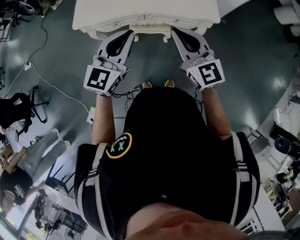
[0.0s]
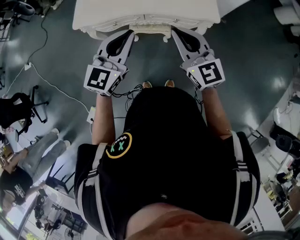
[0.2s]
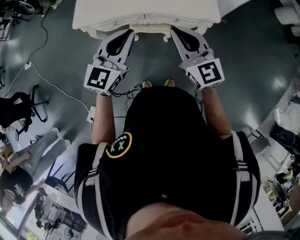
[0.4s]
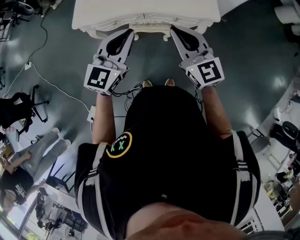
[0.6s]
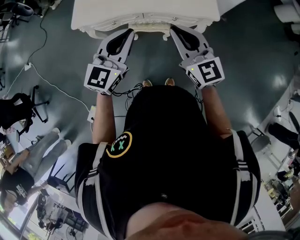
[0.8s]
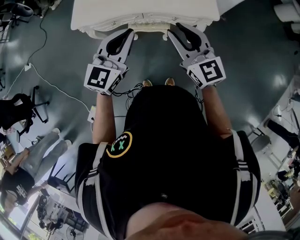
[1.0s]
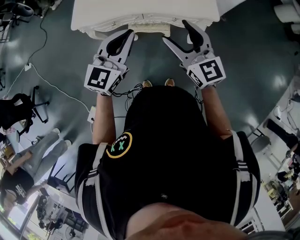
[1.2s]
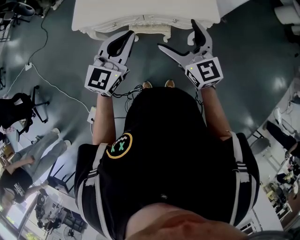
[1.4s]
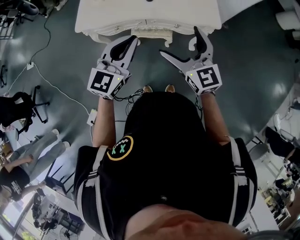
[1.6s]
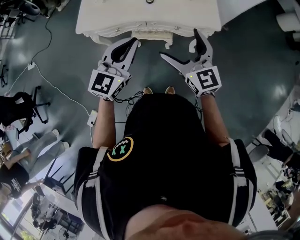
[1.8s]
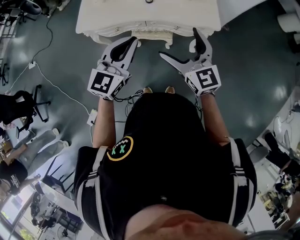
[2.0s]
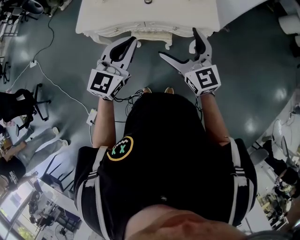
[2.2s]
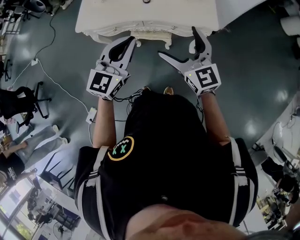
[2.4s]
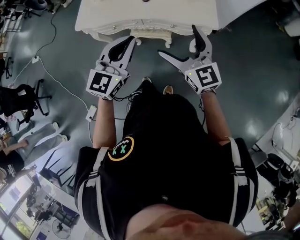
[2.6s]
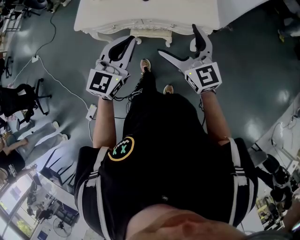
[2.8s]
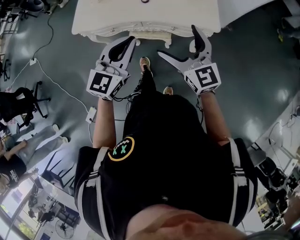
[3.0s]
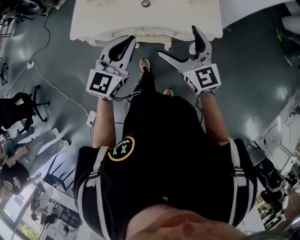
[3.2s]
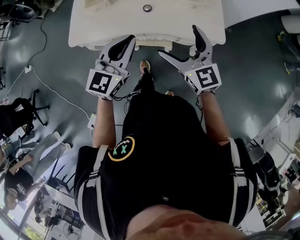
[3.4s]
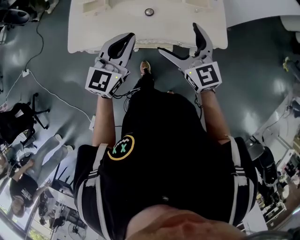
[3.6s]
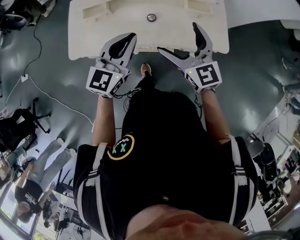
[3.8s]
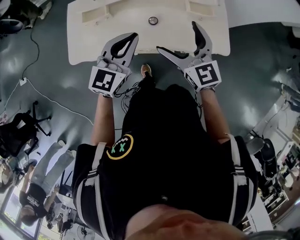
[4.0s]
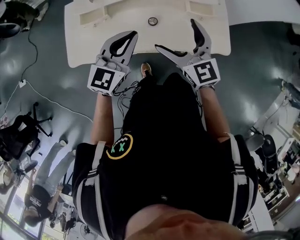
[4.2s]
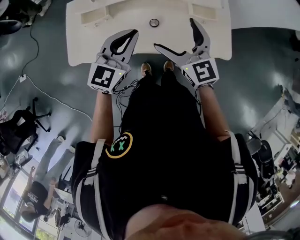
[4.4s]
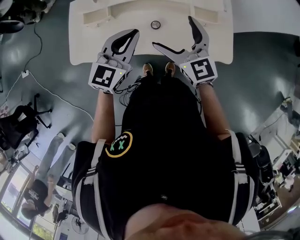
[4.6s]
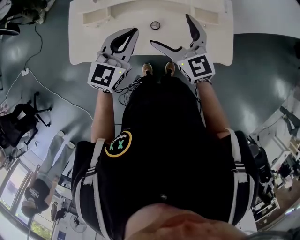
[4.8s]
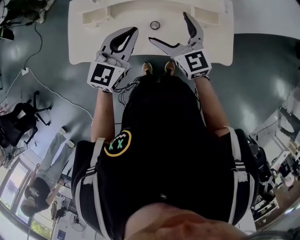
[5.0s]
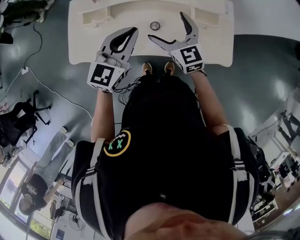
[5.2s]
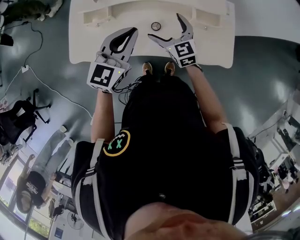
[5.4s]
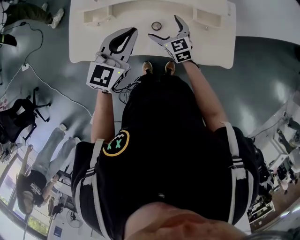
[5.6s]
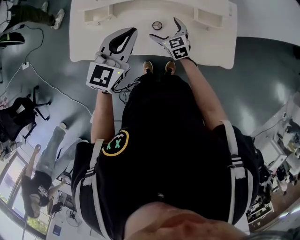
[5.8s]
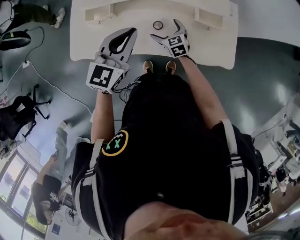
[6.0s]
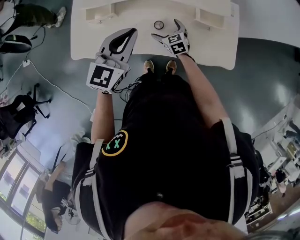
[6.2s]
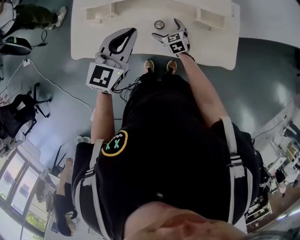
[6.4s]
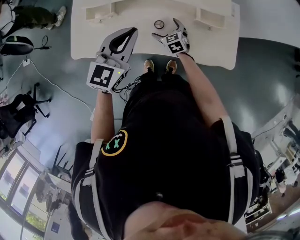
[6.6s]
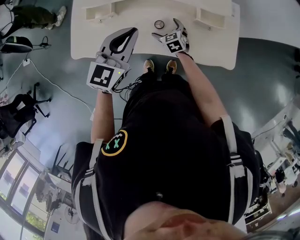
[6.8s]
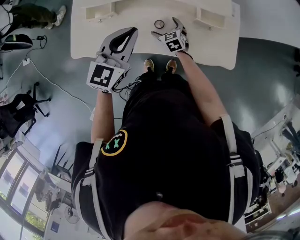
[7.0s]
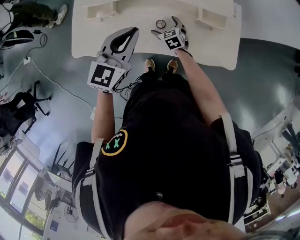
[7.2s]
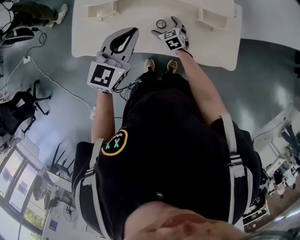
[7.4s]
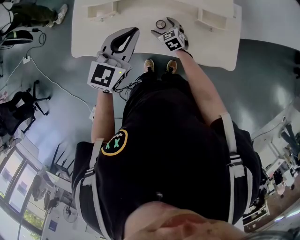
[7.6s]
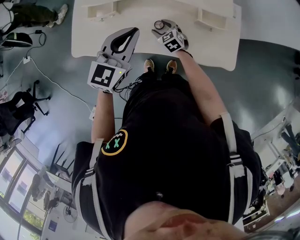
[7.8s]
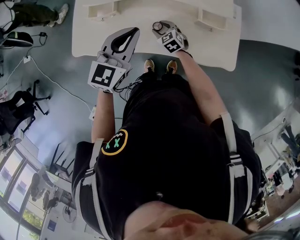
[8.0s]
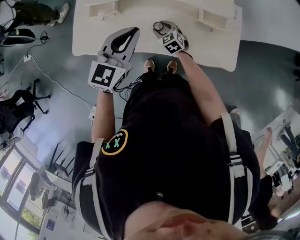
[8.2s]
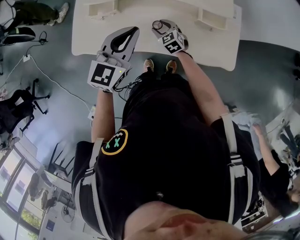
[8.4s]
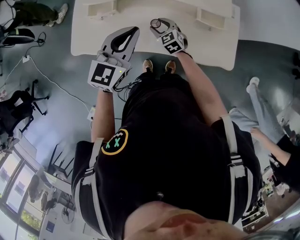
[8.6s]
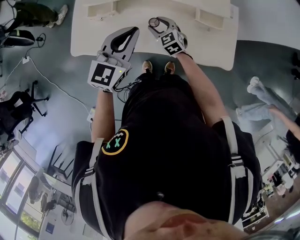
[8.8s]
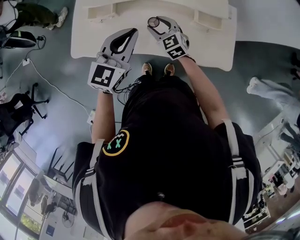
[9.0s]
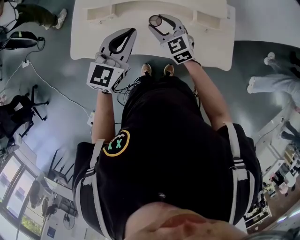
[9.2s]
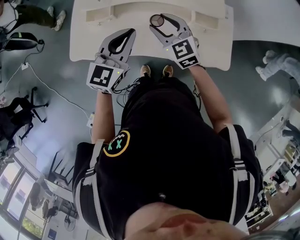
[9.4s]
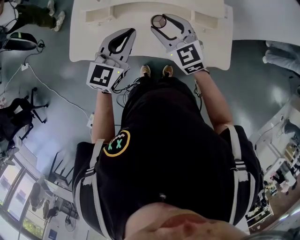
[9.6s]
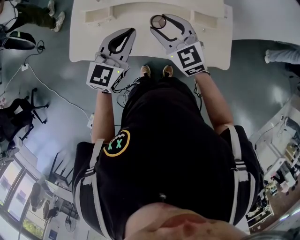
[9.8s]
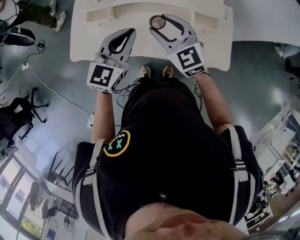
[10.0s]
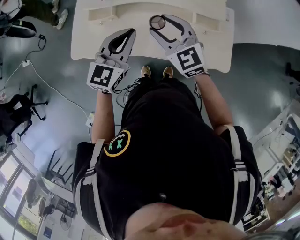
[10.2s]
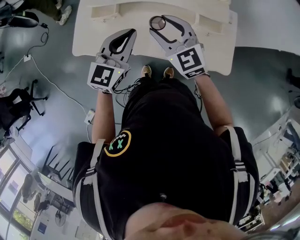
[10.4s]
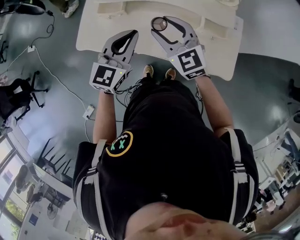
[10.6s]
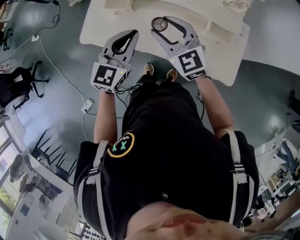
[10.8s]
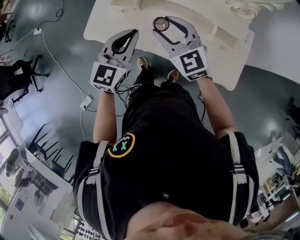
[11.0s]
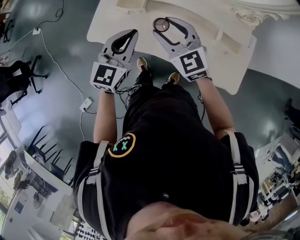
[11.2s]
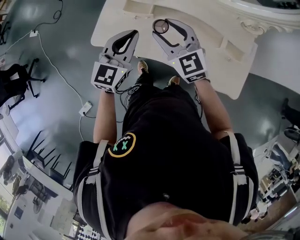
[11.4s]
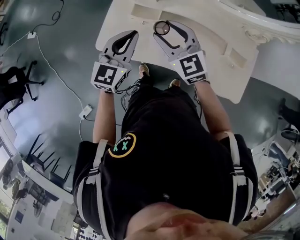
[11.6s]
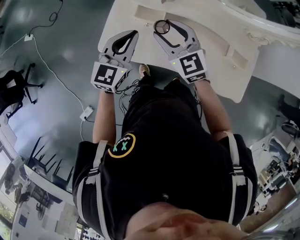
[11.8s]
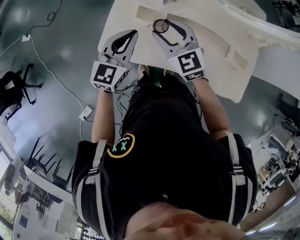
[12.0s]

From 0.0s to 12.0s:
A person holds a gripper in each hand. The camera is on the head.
From 0.0s to 1.6s: The right gripper opens.
From 1.6s to 3.0s: The two grippers go roughly 5 cm to the right.
From 3.0s to 4.4s: The left gripper travels forward by some 30 cm. Meanwhile the right gripper is displaced forward and to the left by about 35 cm.
From 4.4s to 6.0s: The right gripper moves downward, roughly 25 cm, and swivels some 30 degrees.
From 6.0s to 7.6s: There are only small adjustments of the grippers.
From 7.6s to 9.0s: The right gripper is displaced upward by roughly 15 cm, and closes.
From 9.0s to 10.4s: The right gripper heads upward, covering roughly 15 cm.
From 10.4s to 12.0s: Both grippers move to the left and forward, about 25 cm.

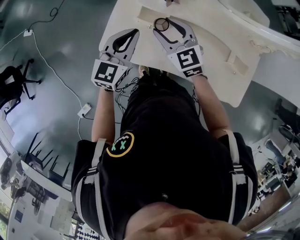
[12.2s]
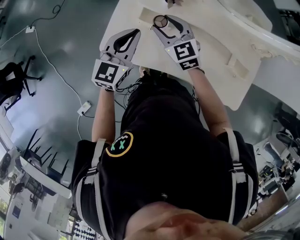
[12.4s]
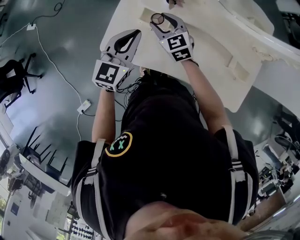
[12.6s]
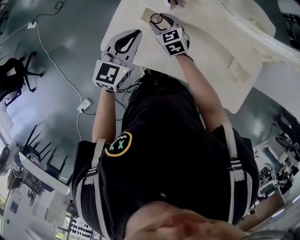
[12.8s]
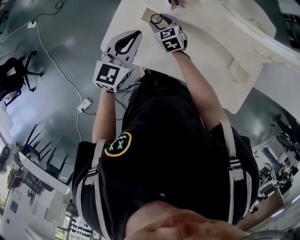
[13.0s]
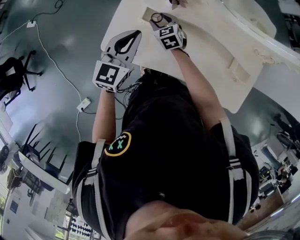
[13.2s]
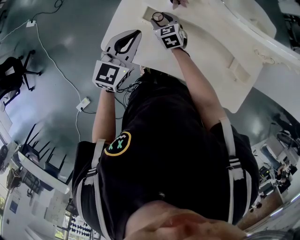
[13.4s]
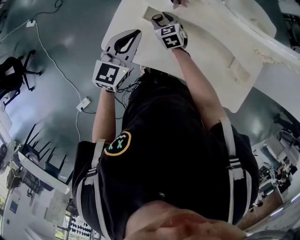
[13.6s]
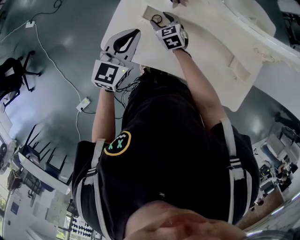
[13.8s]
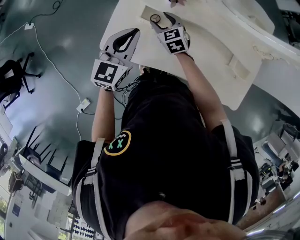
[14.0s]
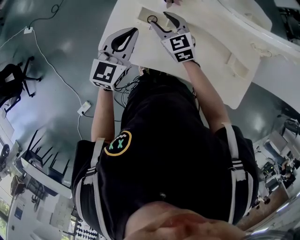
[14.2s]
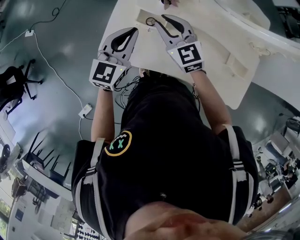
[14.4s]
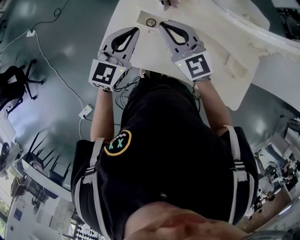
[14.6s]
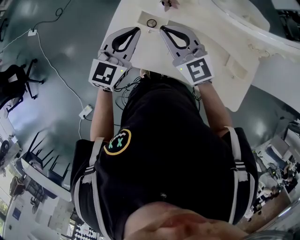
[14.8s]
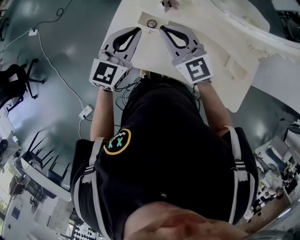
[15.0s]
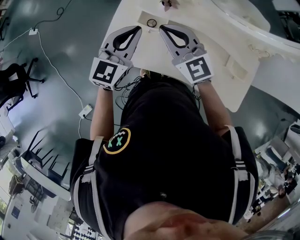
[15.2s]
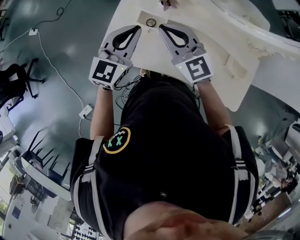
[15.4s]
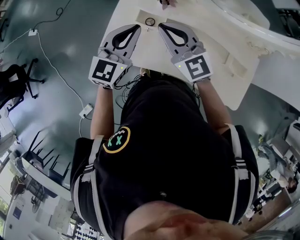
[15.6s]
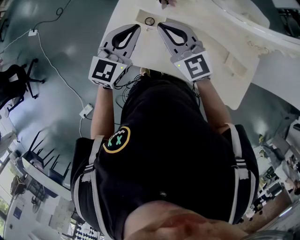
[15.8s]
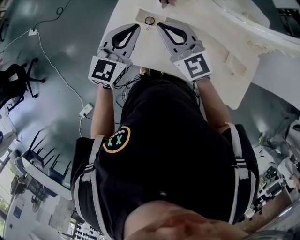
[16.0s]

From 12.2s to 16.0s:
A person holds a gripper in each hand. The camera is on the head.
From 12.2s to 13.4s: The right gripper travels downward and forward by about 20 cm.
From 13.4s to 14.8s: The right gripper goes some 25 cm upward and backward, points its fingers about 30 degrees further upward, and closes, while the left gripper ends up roughly 5 cm from where it was.
From 14.8s to 16.0s: Neither gripper changes place.

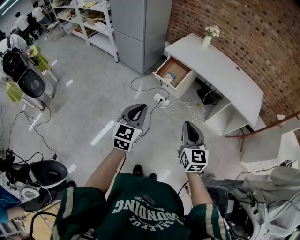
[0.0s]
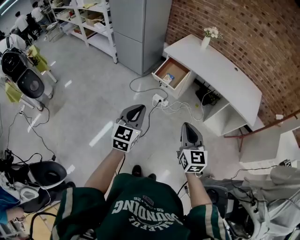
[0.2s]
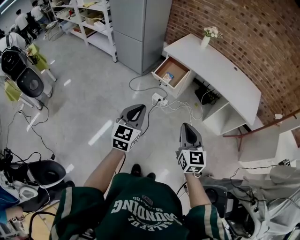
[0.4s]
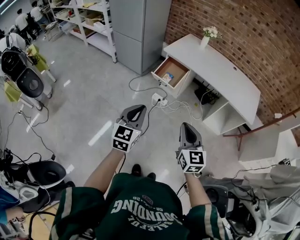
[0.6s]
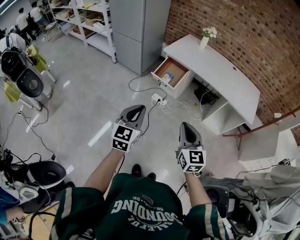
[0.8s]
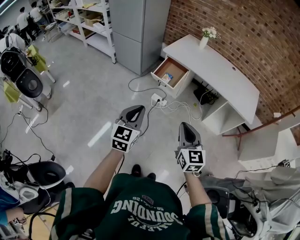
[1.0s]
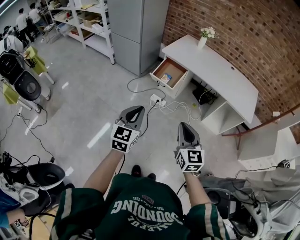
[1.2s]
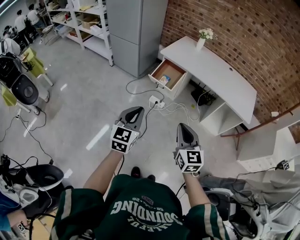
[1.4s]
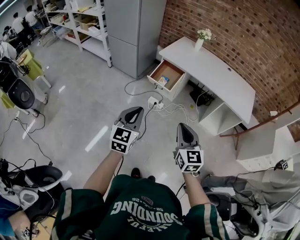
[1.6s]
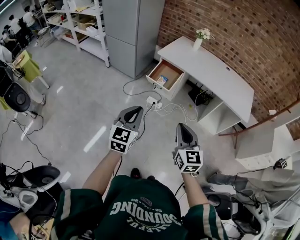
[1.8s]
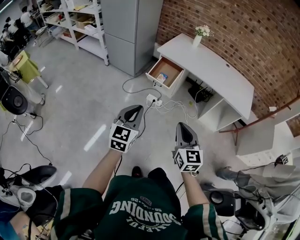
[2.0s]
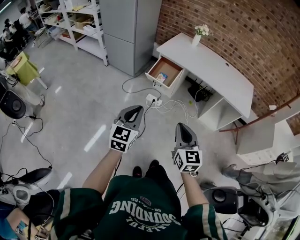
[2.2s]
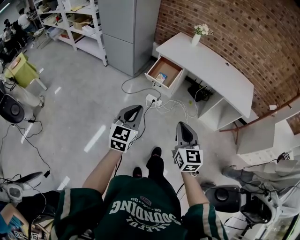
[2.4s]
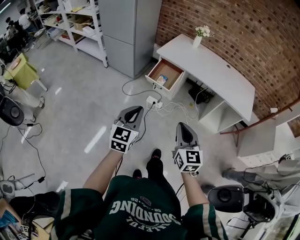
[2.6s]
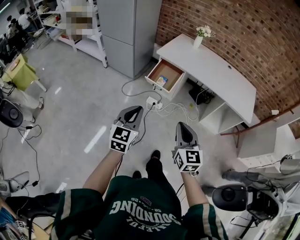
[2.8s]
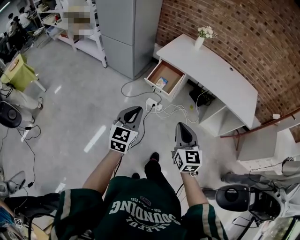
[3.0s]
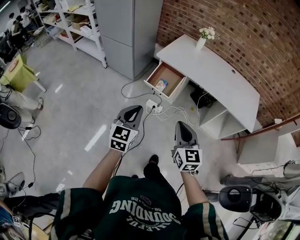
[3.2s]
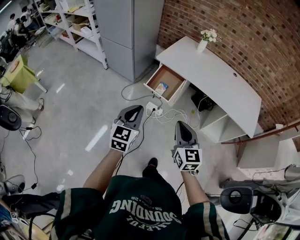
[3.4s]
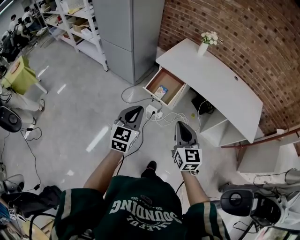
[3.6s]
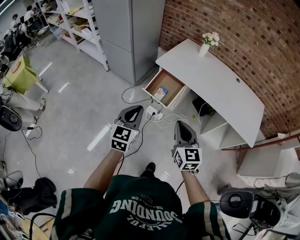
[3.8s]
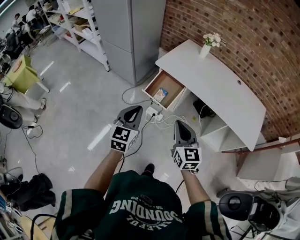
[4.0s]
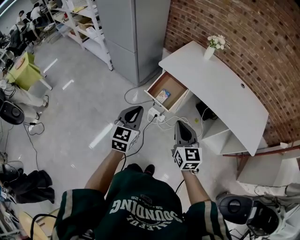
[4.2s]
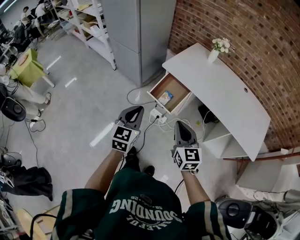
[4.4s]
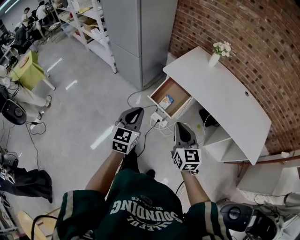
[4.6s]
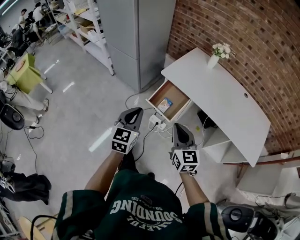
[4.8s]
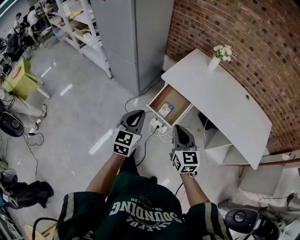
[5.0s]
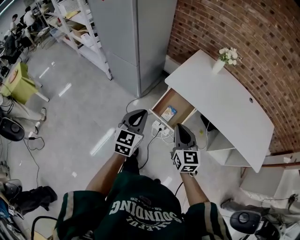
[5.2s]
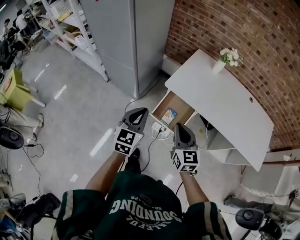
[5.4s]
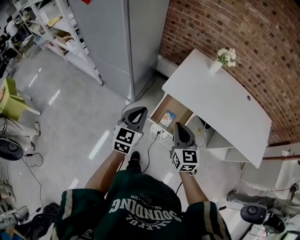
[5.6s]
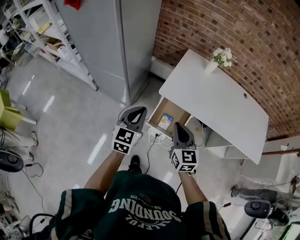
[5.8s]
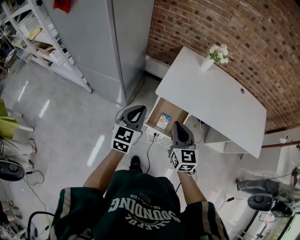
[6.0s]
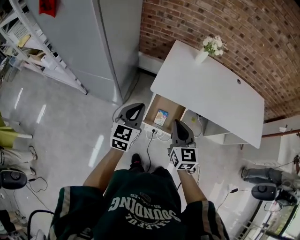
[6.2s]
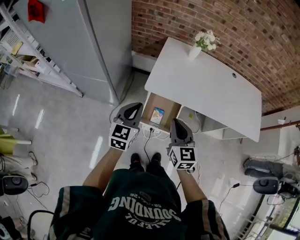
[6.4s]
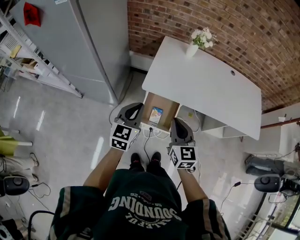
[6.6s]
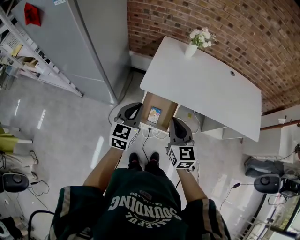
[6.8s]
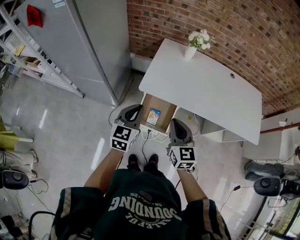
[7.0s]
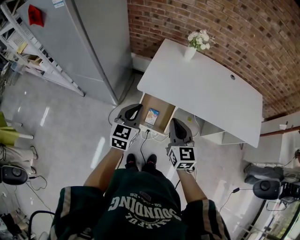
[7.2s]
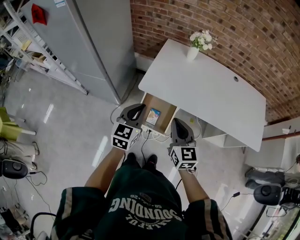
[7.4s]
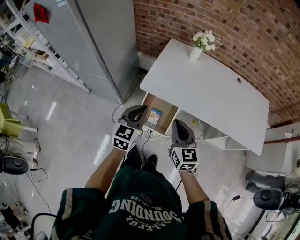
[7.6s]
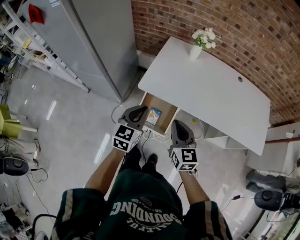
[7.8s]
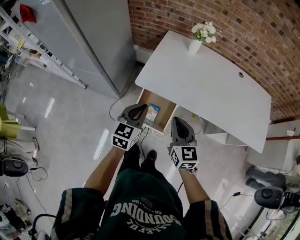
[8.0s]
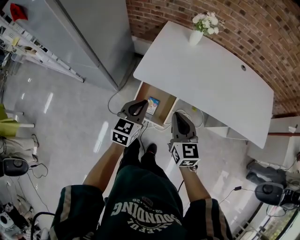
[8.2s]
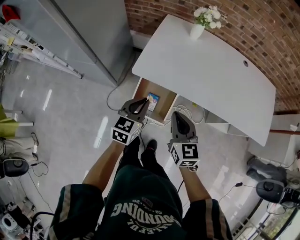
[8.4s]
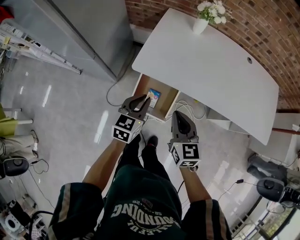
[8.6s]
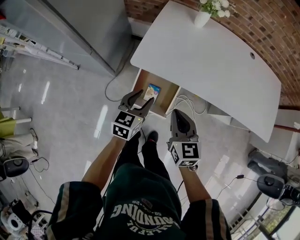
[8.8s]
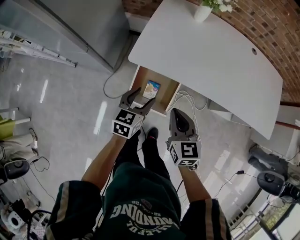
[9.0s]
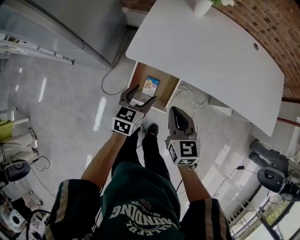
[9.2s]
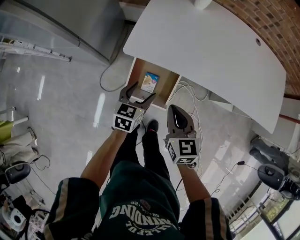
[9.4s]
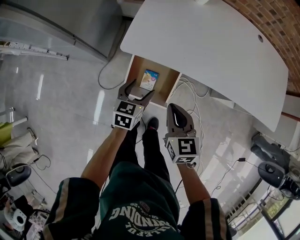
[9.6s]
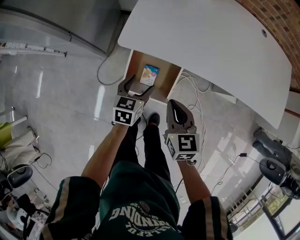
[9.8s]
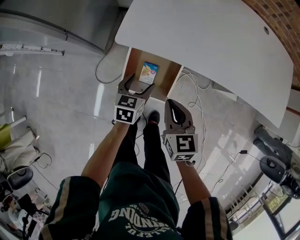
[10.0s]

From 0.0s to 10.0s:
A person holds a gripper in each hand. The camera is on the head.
From 0.0s to 1.4s: There are only small adjustments of the grippers.
From 1.4s to 2.8s: Both grippers move forward, approximately 5 cm.
From 2.8s to 4.2s: Both grippers move forward, roughly 20 cm.
From 4.2s to 5.8s: The right gripper travels forward and to the left by approximately 30 cm. Meanwhile the left gripper goes about 30 cm forward.
From 5.8s to 7.2s: The grippers both shift to the right by about 10 cm.
From 7.2s to 8.6s: The right gripper heads downward, covering approximately 10 cm; the left gripper shifts some 15 cm downward and to the right.
From 8.6s to 10.0s: Both grippers travel together downward, roughly 15 cm. The left gripper opens.
